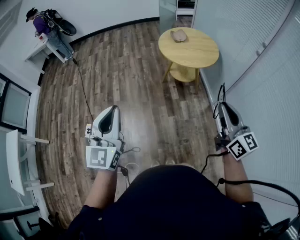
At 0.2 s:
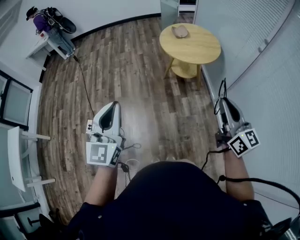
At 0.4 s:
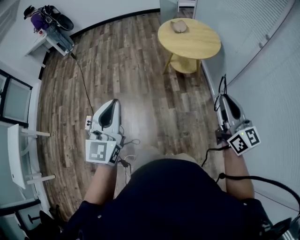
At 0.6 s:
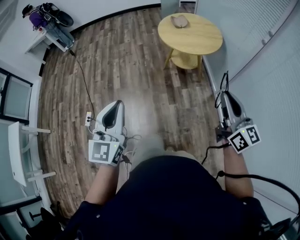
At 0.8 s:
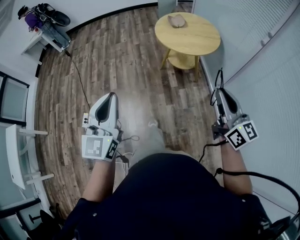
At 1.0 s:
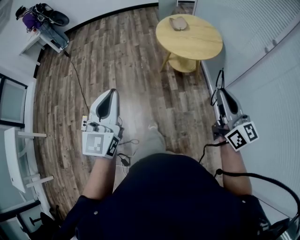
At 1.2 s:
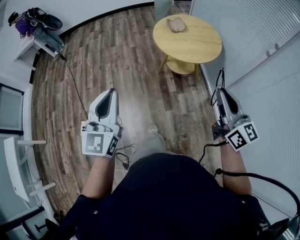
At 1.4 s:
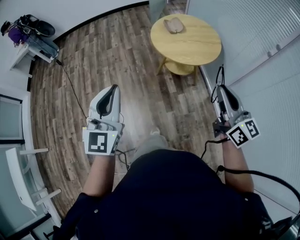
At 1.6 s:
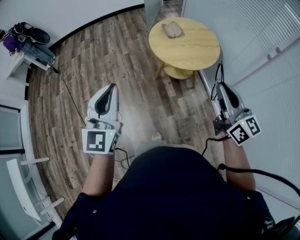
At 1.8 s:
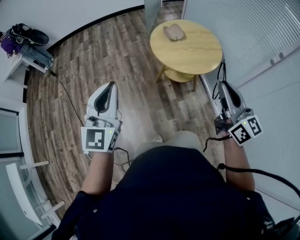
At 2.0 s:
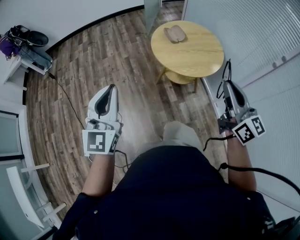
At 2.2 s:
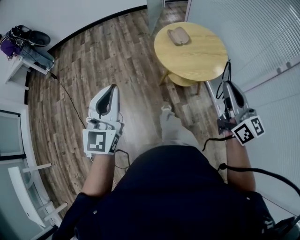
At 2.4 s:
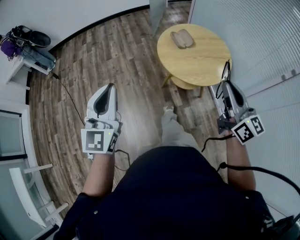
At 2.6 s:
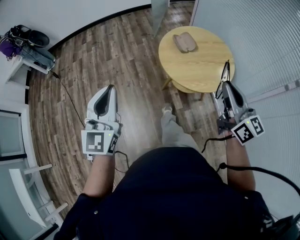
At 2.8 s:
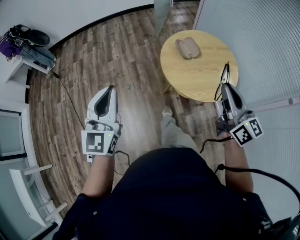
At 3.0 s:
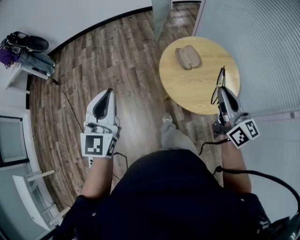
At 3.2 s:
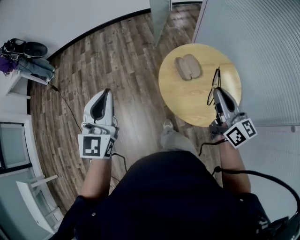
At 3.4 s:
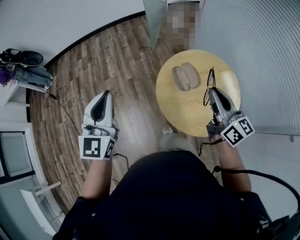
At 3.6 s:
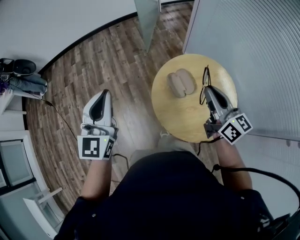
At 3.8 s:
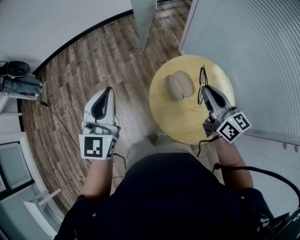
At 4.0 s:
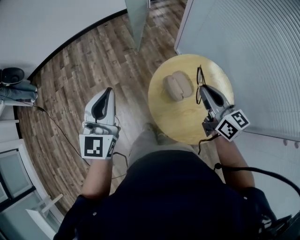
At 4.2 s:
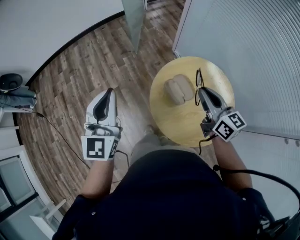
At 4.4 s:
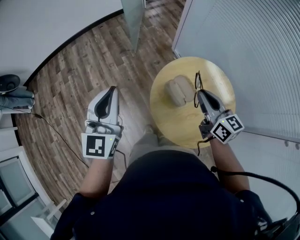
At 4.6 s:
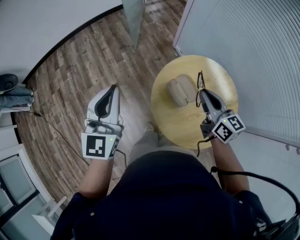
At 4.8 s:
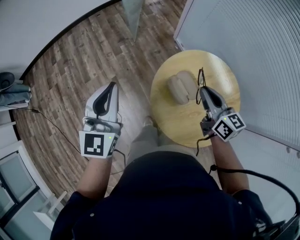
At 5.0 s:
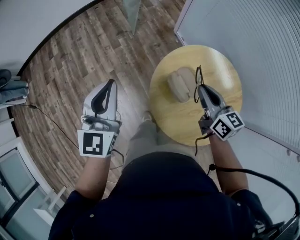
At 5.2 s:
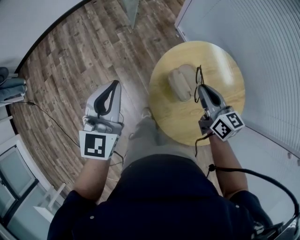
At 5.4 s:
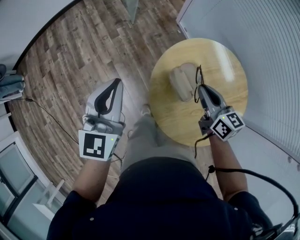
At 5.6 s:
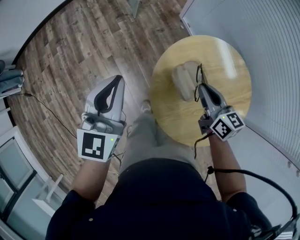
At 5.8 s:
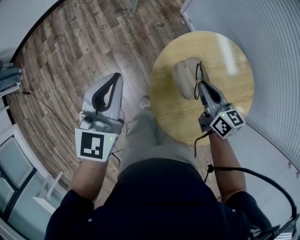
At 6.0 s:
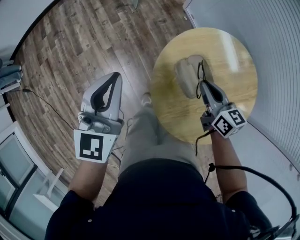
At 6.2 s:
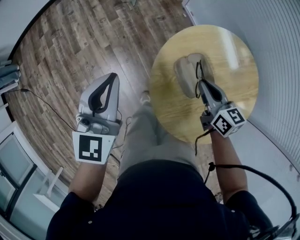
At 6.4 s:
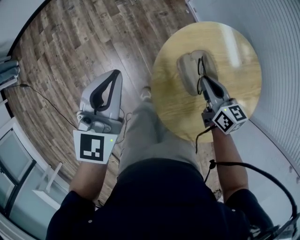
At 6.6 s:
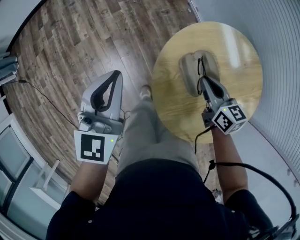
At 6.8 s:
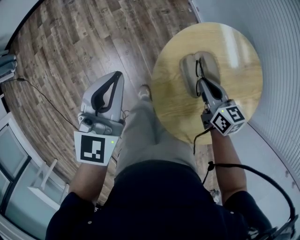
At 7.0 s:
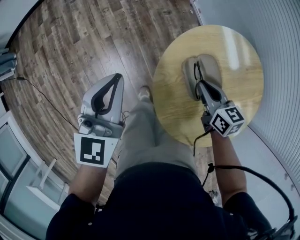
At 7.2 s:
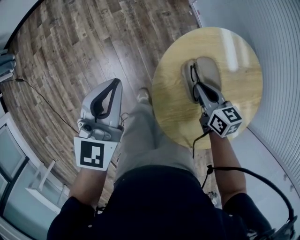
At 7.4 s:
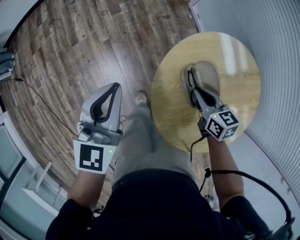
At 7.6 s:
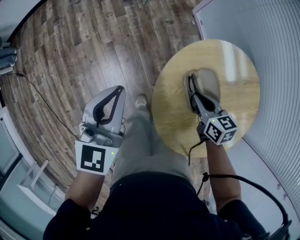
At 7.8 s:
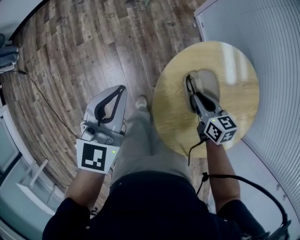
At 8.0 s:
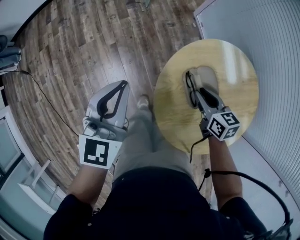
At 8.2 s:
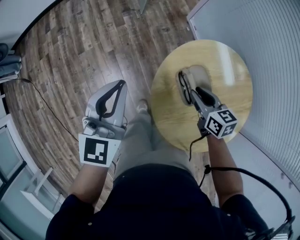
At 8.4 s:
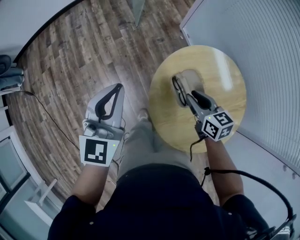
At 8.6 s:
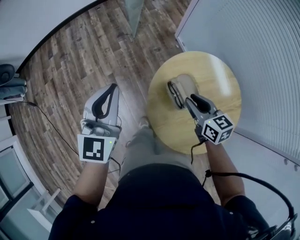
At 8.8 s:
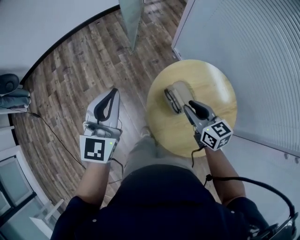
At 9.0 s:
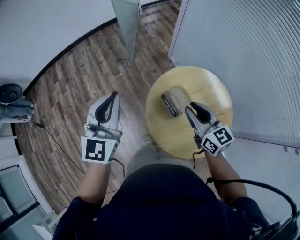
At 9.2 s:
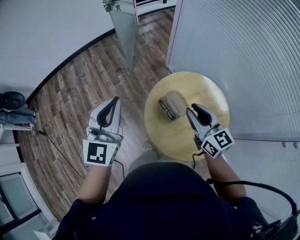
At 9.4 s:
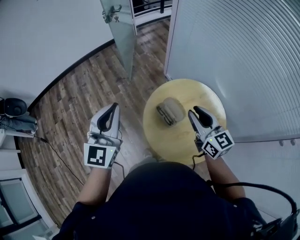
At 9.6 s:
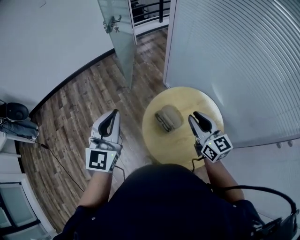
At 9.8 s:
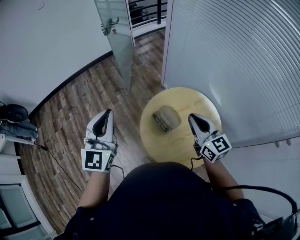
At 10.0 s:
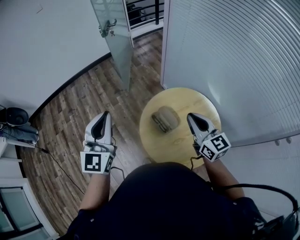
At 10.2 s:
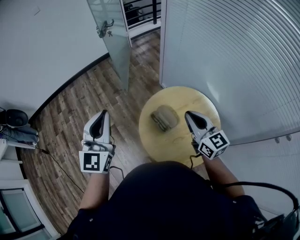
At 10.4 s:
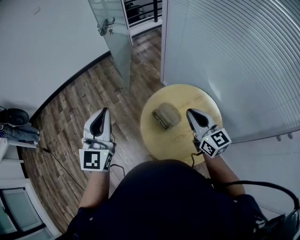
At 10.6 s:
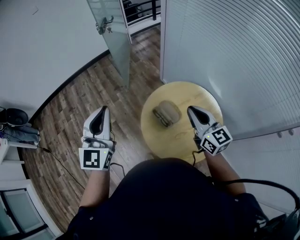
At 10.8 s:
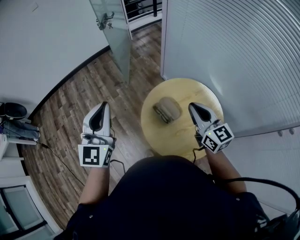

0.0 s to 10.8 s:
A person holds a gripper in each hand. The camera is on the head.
0.0 to 1.6 s: The two grippers go roughly 25 cm forward.
1.6 to 3.0 s: Both grippers move forward, about 35 cm.
3.0 to 4.6 s: Both grippers move forward, roughly 35 cm.
4.6 to 6.2 s: The right gripper is displaced downward by about 20 cm. Meanwhile the left gripper shifts roughly 20 cm downward and forward.
6.2 to 7.8 s: The right gripper goes some 5 cm downward.
7.8 to 9.2 s: Both grippers travel together upward, about 25 cm. The left gripper changes its angle by approximately 20 degrees, while the right gripper points its fingers about 30 degrees further upward.
9.2 to 10.8 s: Both grippers travel together upward, approximately 5 cm. The right gripper closes up.

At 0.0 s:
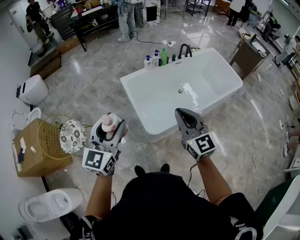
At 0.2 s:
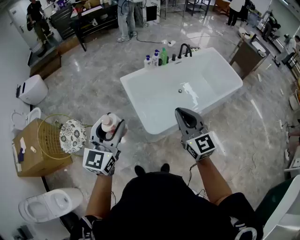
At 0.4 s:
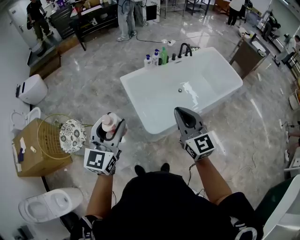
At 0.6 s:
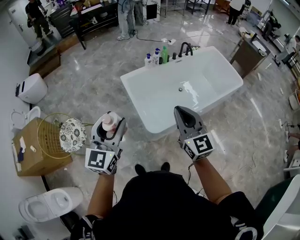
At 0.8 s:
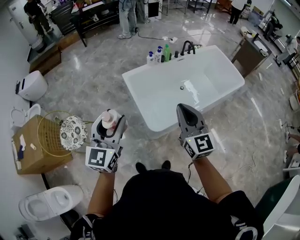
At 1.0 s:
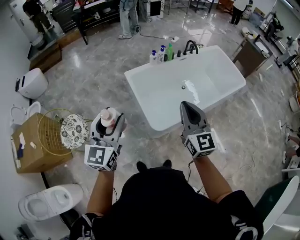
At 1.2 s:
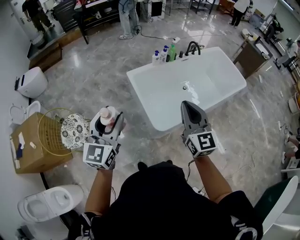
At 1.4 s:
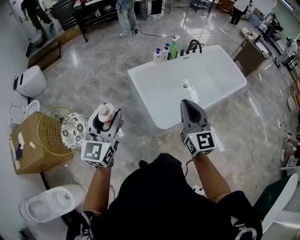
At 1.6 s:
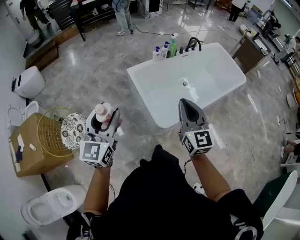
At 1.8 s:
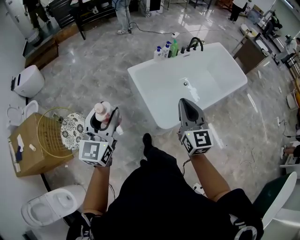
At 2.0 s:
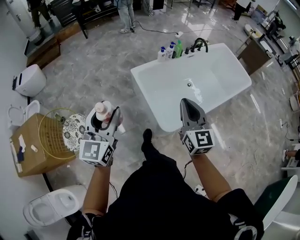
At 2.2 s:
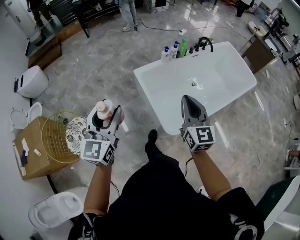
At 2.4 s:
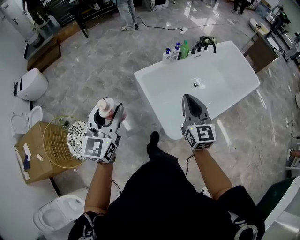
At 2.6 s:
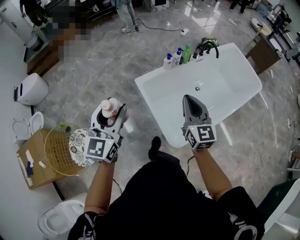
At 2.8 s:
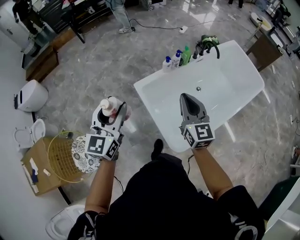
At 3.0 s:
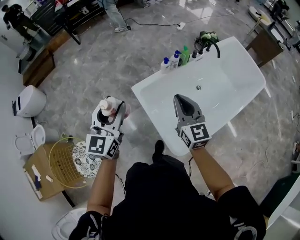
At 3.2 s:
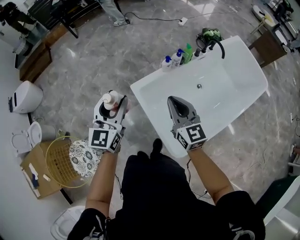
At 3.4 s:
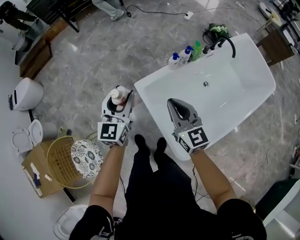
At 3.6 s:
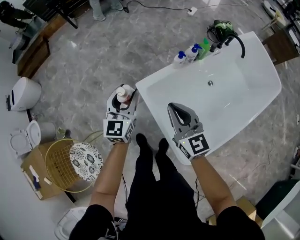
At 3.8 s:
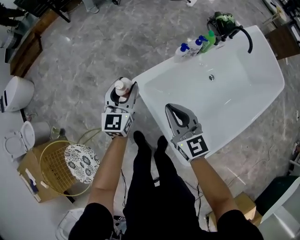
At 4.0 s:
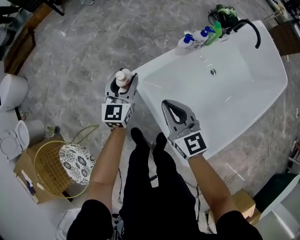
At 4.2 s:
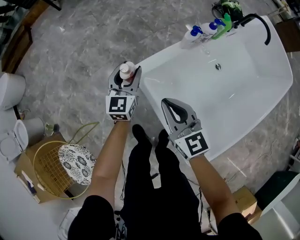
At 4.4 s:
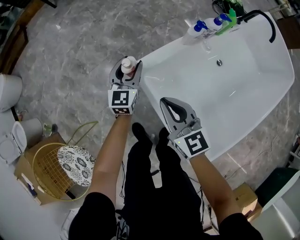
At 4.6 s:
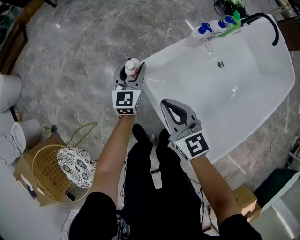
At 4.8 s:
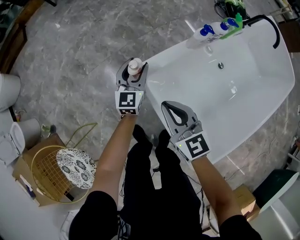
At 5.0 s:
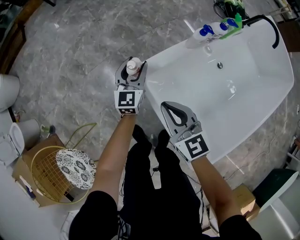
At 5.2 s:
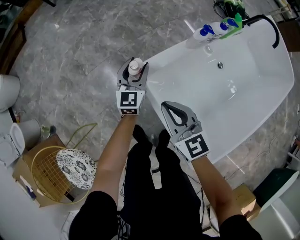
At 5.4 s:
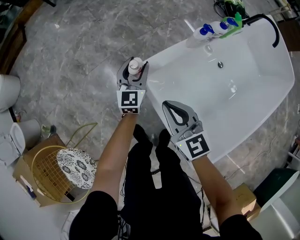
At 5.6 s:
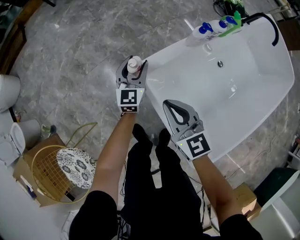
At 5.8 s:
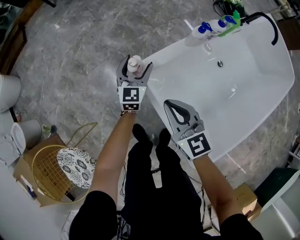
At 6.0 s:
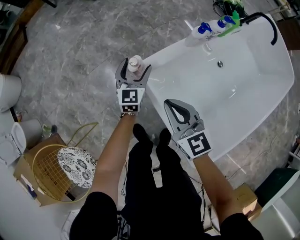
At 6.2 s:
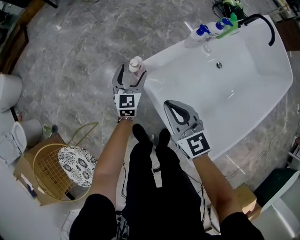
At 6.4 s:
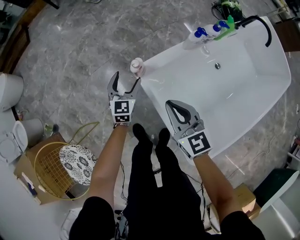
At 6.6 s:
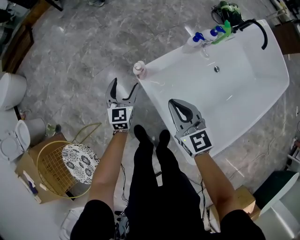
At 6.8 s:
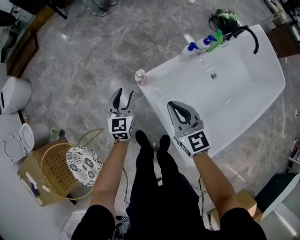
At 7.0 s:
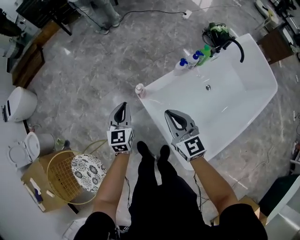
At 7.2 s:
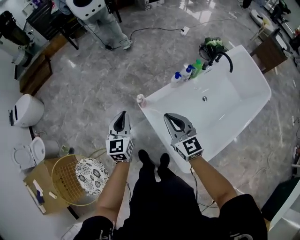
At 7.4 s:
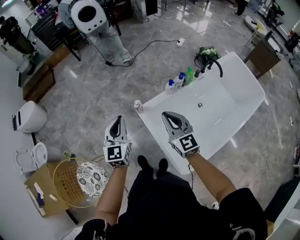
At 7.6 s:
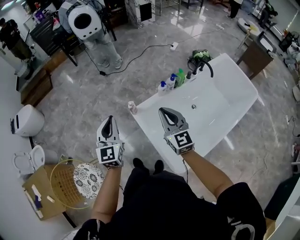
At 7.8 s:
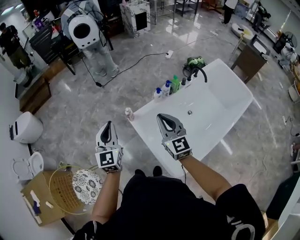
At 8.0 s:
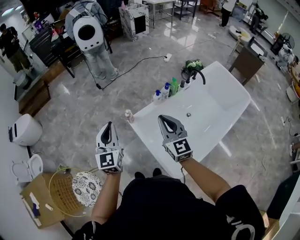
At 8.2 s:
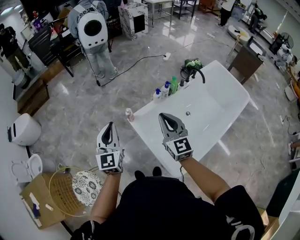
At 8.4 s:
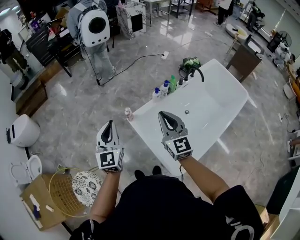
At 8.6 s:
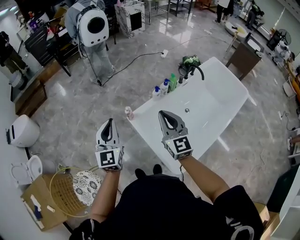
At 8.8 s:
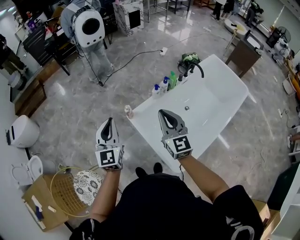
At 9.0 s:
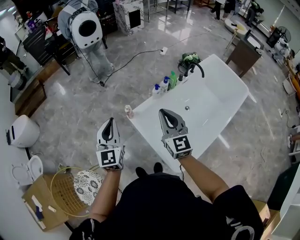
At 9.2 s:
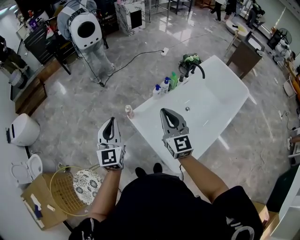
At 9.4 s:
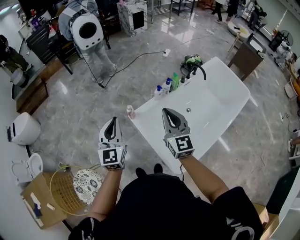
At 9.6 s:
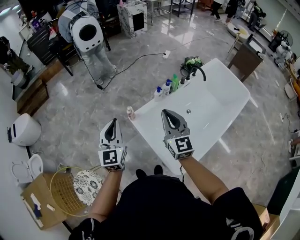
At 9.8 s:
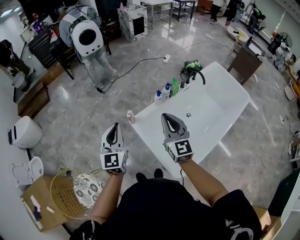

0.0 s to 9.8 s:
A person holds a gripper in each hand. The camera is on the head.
0.0 to 1.4 s: The grippers both shift to the left by some 10 cm.
1.4 to 2.8 s: The two grippers go roughly 30 cm forward.
2.8 to 4.2 s: The left gripper shifts about 50 cm downward and forward. Meanwhile the right gripper goes approximately 40 cm downward, forward and to the left.
4.2 to 5.6 s: The left gripper is displaced downward by some 10 cm, while the right gripper travels downward by approximately 5 cm.
5.6 to 7.0 s: The right gripper is displaced upward by about 20 cm, while the left gripper moves upward and backward, roughly 25 cm, and closes.
7.0 to 8.4 s: Both grippers move upward and backward, roughly 25 cm. The left gripper swivels some 20 degrees.
8.4 to 9.8 s: The grippers stay close to where they were, moving slightly.

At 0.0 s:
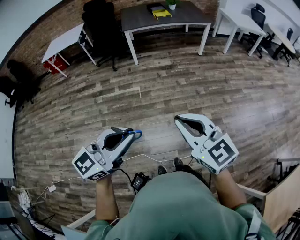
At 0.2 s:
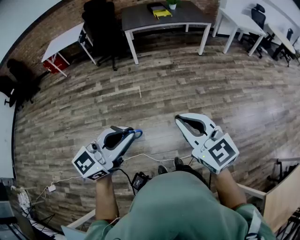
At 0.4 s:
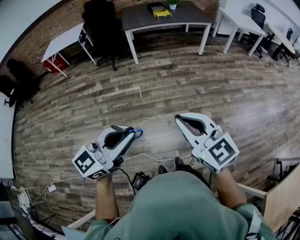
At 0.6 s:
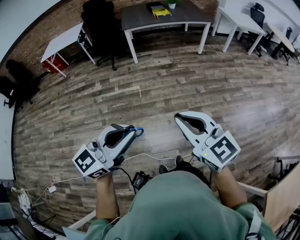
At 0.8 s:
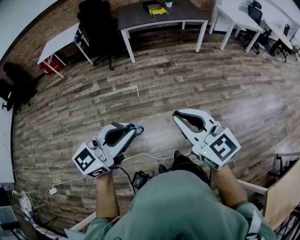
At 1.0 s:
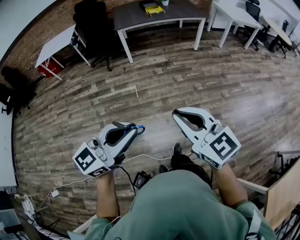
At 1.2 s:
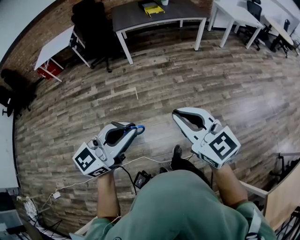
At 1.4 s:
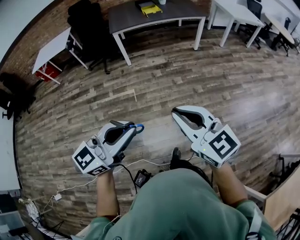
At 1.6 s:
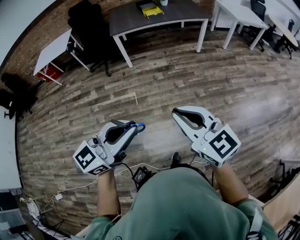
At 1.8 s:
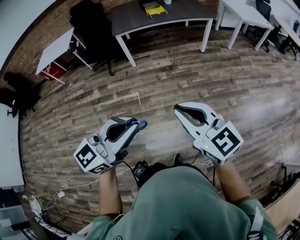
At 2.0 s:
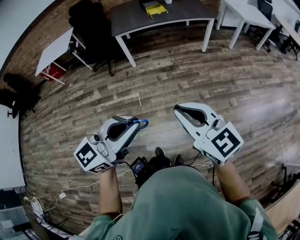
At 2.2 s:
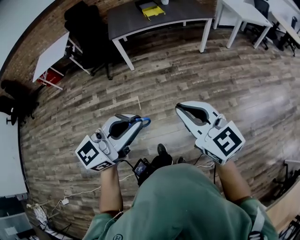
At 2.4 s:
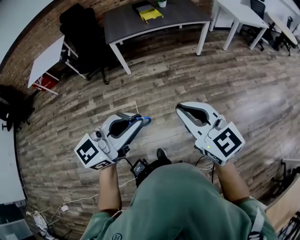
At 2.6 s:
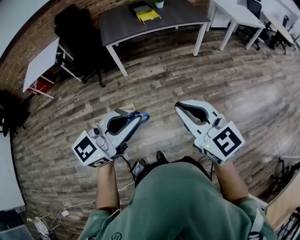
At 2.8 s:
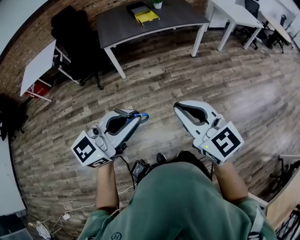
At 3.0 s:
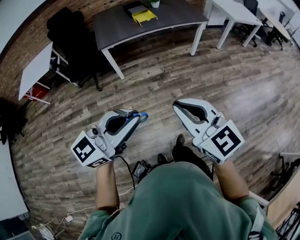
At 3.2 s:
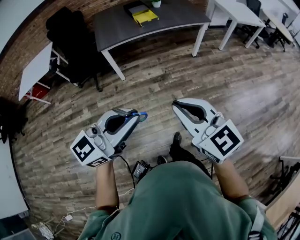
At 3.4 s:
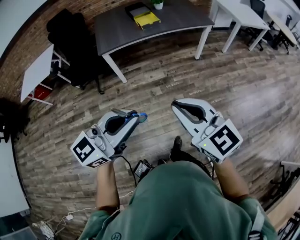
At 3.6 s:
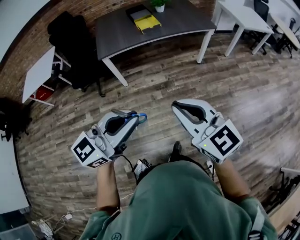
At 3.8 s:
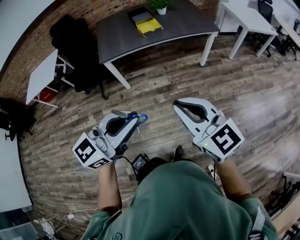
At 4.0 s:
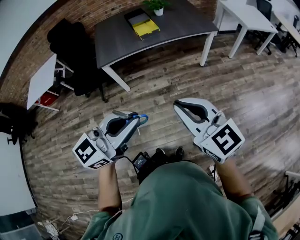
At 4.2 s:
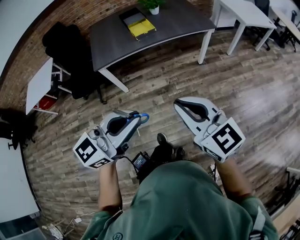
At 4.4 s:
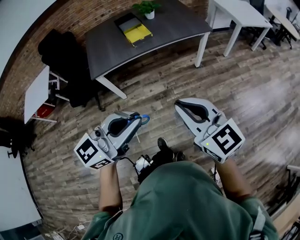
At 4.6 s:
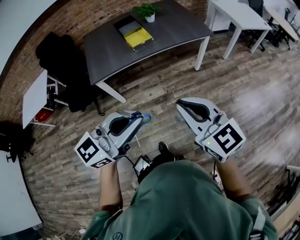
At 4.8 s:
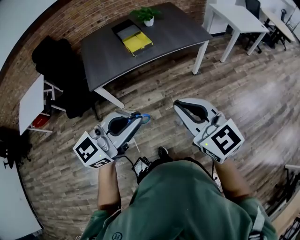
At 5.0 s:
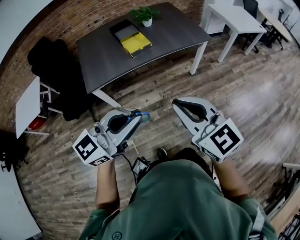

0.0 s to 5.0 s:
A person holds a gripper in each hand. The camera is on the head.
0.0 to 1.6 s: The two grippers go roughly 20 cm forward.
1.6 to 3.4 s: Both grippers move forward, about 30 cm.
3.4 to 5.0 s: Both grippers move forward, some 30 cm.
